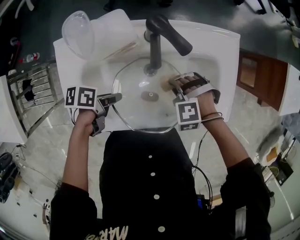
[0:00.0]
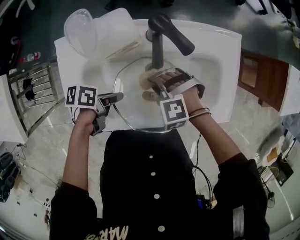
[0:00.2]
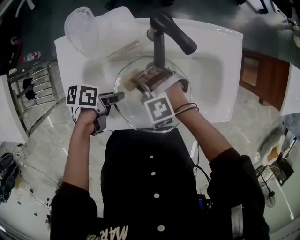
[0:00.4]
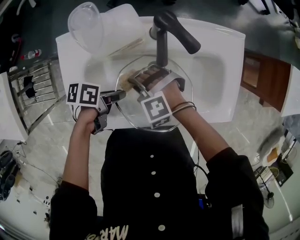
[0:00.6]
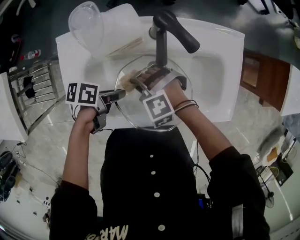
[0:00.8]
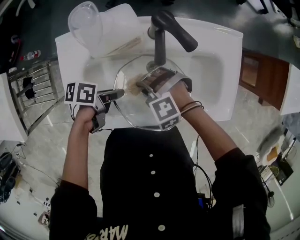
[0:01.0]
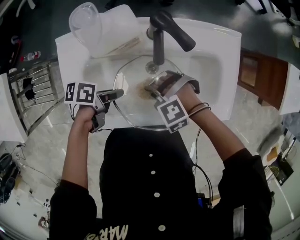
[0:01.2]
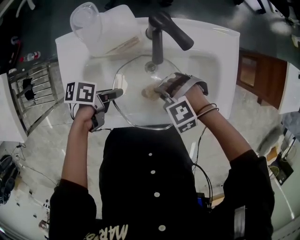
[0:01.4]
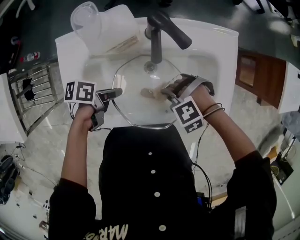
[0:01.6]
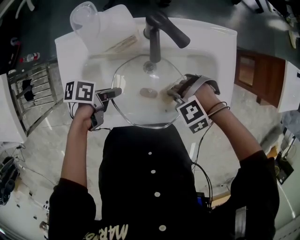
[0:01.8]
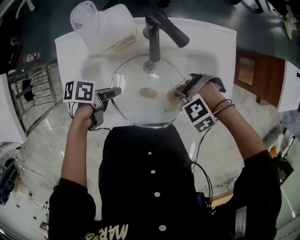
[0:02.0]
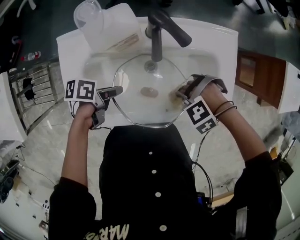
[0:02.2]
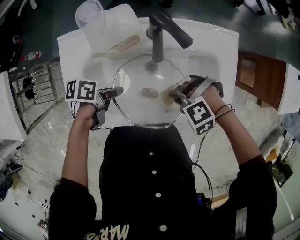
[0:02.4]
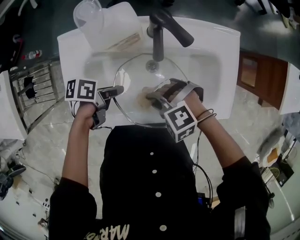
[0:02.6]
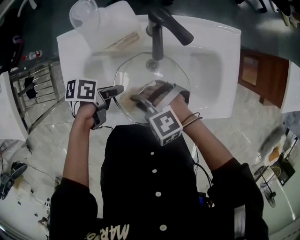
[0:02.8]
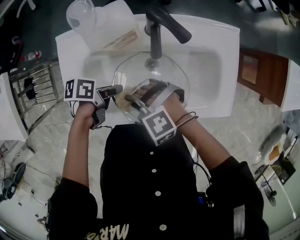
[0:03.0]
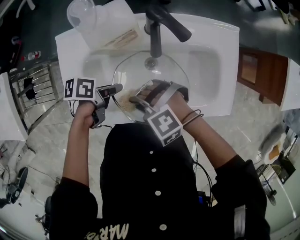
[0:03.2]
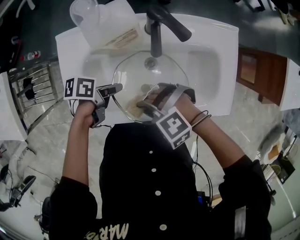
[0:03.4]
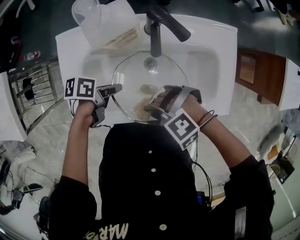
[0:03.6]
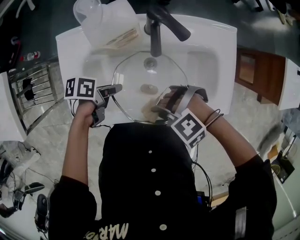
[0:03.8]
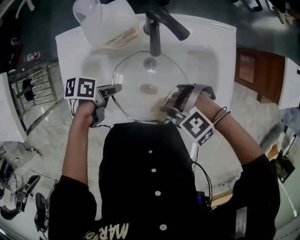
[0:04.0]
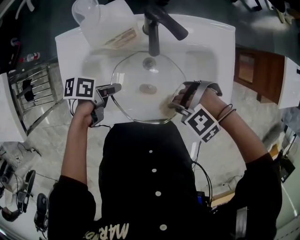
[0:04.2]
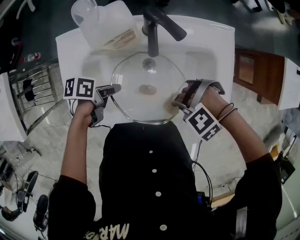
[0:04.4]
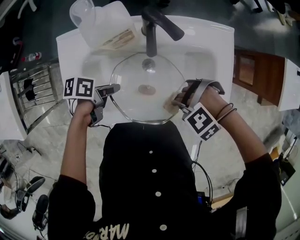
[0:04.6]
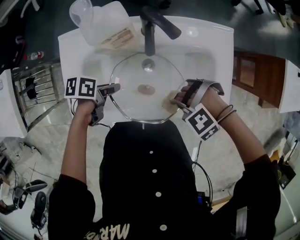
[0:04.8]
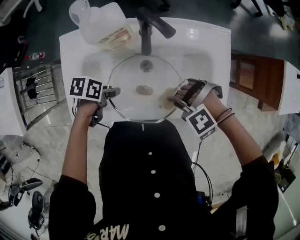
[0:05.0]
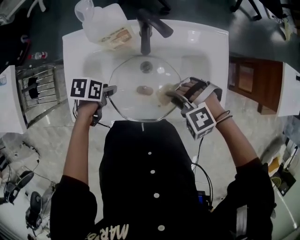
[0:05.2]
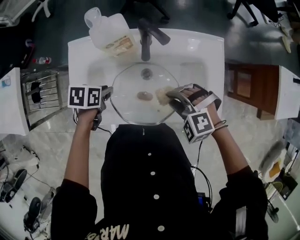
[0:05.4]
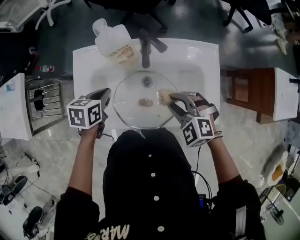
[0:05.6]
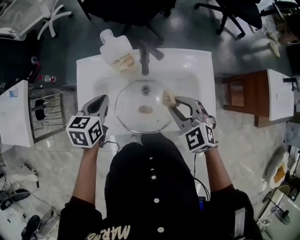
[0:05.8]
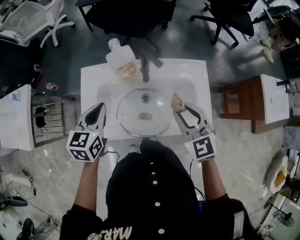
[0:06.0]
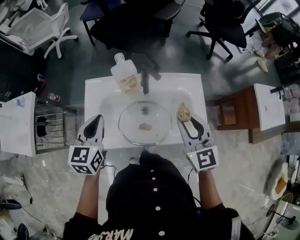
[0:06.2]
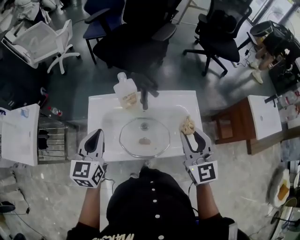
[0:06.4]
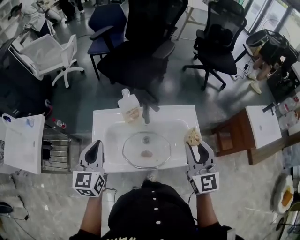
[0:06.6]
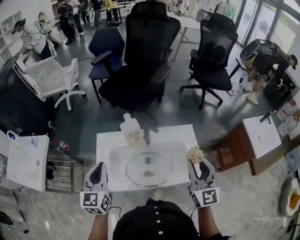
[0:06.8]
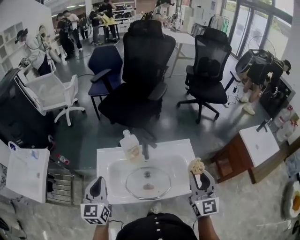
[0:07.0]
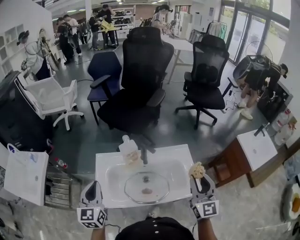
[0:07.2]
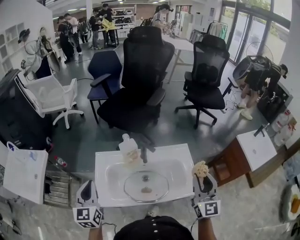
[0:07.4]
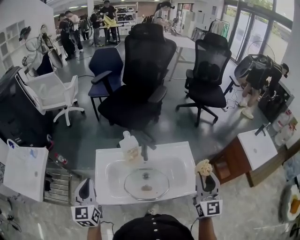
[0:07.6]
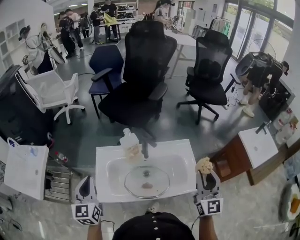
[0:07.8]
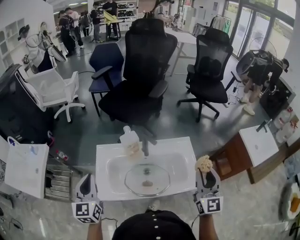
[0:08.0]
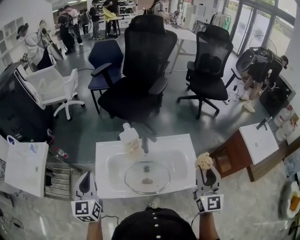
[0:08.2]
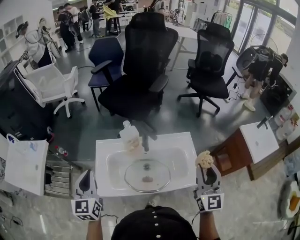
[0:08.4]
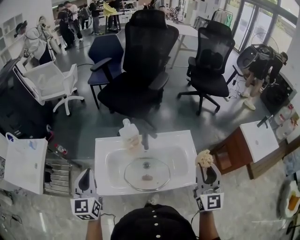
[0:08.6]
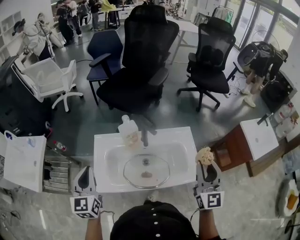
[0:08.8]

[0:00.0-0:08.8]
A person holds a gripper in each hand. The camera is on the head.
0:01.4 to 0:03.0: The right gripper moves some 10 cm.
0:03.0 to 0:04.4: The right gripper ends up approximately 20 cm from where it was, and rotates some 30 degrees.
0:04.4 to 0:05.8: Both grippers move upward, roughly 15 cm. The right gripper points its fingers about 30 degrees further upward, while the left gripper turns by approximately 60 degrees, and opens and closes again.
0:05.8 to 0:07.4: The left gripper shifts roughly 25 cm upward, to the left and backward, and tilts its fingers some 30 degrees upward. The right gripper moves upward and to the right, some 25 cm, and angles its fingers upward, by some 40 degrees.
0:07.4 to 0:08.8: Both grippers stay about where they are.

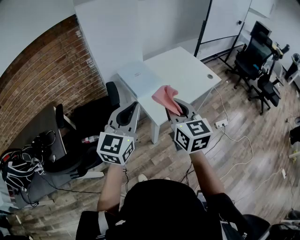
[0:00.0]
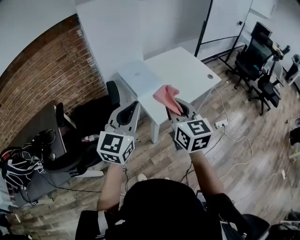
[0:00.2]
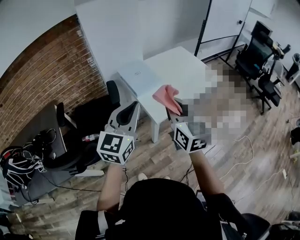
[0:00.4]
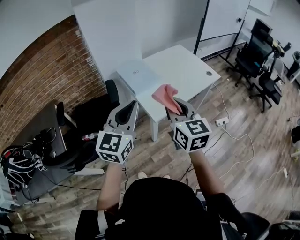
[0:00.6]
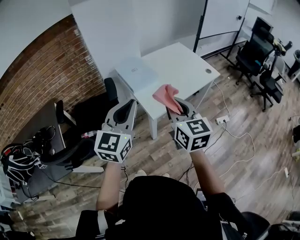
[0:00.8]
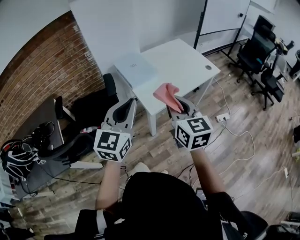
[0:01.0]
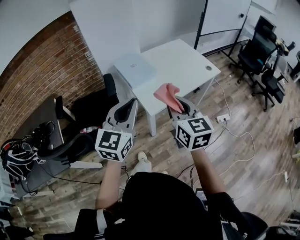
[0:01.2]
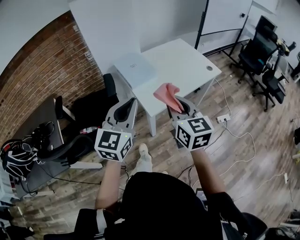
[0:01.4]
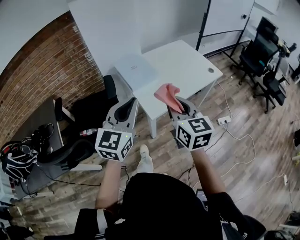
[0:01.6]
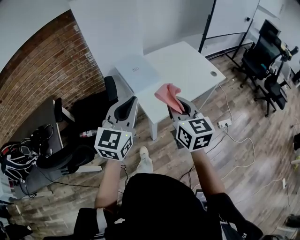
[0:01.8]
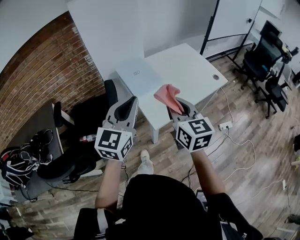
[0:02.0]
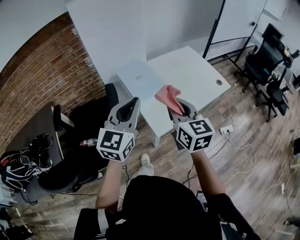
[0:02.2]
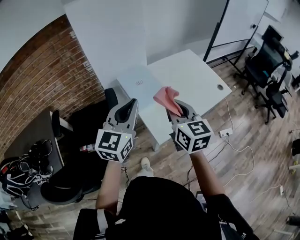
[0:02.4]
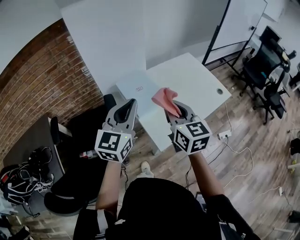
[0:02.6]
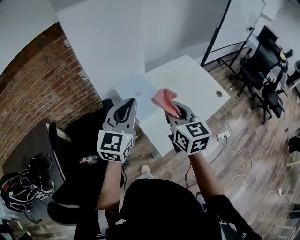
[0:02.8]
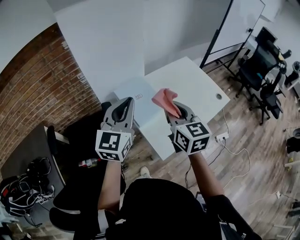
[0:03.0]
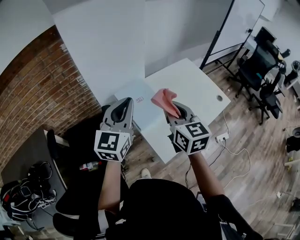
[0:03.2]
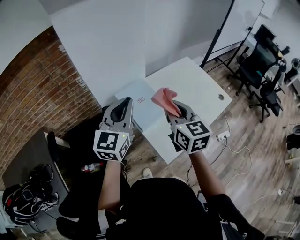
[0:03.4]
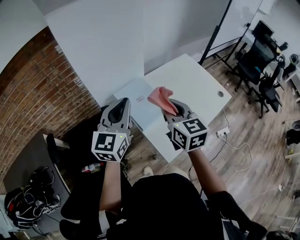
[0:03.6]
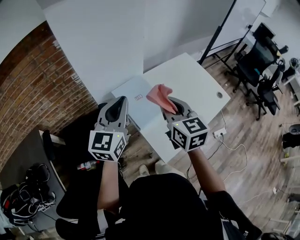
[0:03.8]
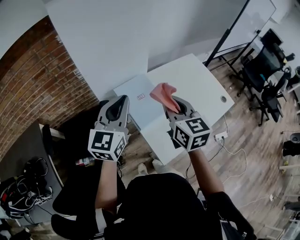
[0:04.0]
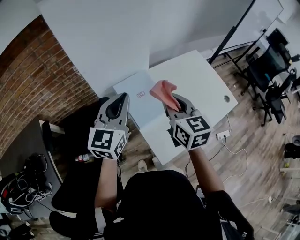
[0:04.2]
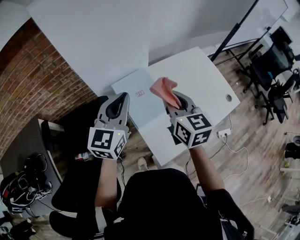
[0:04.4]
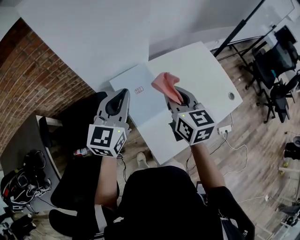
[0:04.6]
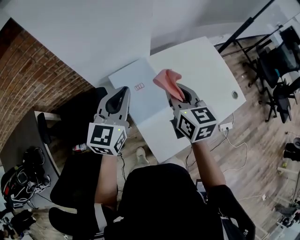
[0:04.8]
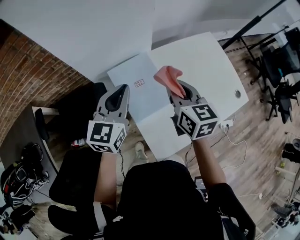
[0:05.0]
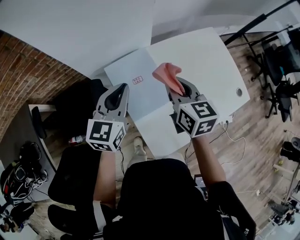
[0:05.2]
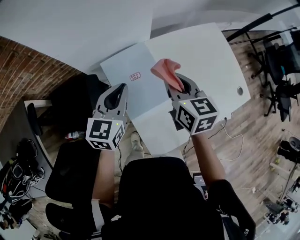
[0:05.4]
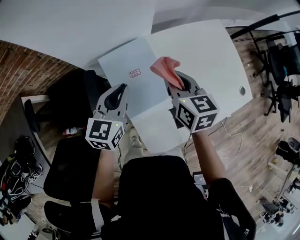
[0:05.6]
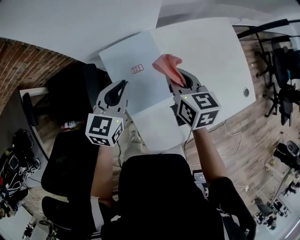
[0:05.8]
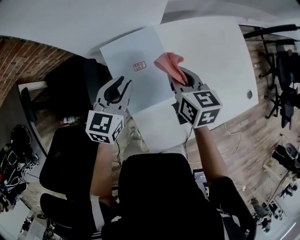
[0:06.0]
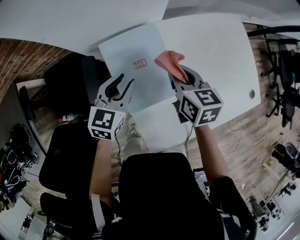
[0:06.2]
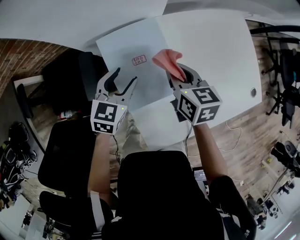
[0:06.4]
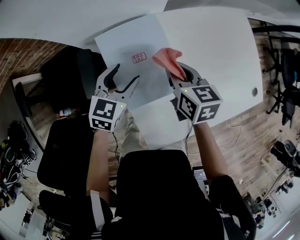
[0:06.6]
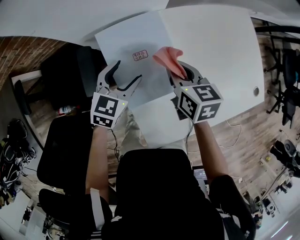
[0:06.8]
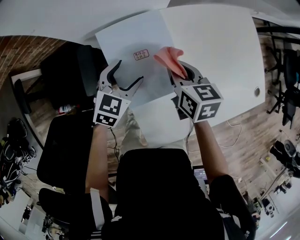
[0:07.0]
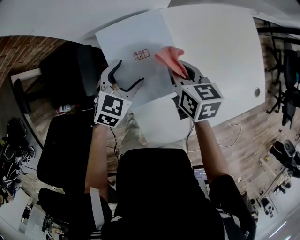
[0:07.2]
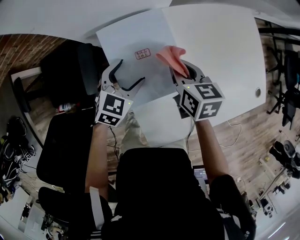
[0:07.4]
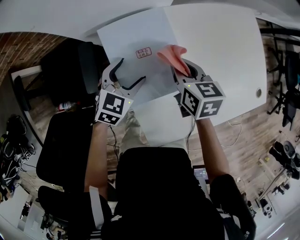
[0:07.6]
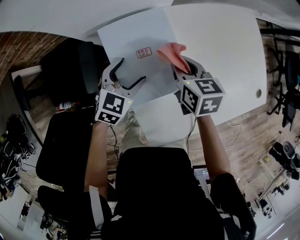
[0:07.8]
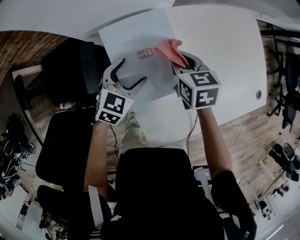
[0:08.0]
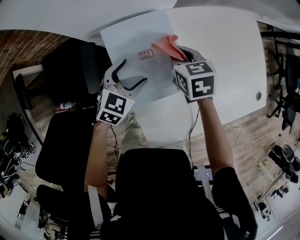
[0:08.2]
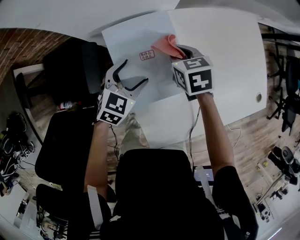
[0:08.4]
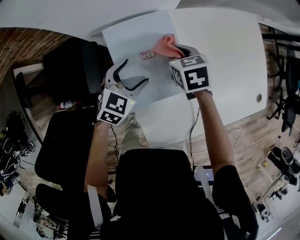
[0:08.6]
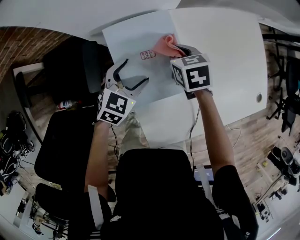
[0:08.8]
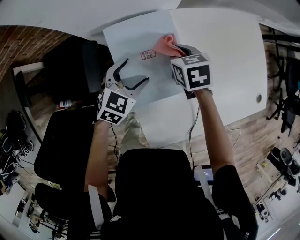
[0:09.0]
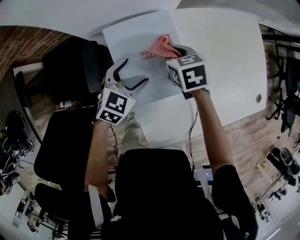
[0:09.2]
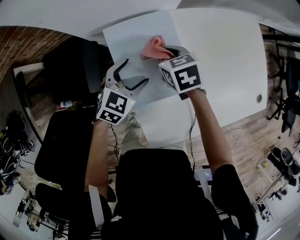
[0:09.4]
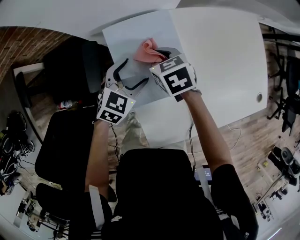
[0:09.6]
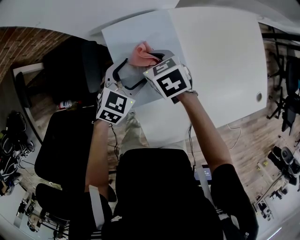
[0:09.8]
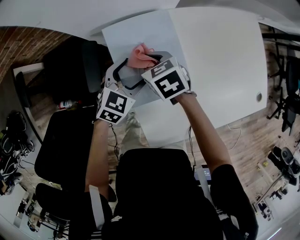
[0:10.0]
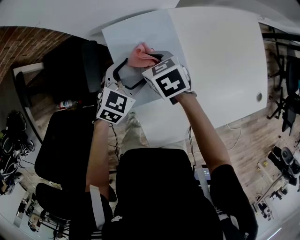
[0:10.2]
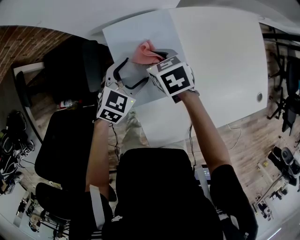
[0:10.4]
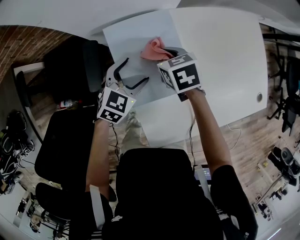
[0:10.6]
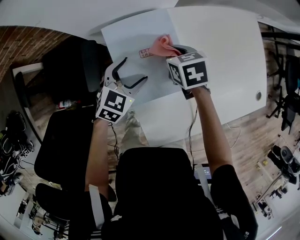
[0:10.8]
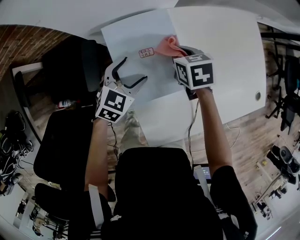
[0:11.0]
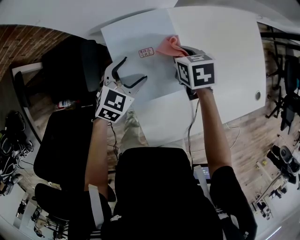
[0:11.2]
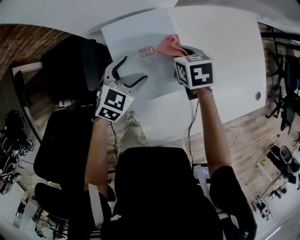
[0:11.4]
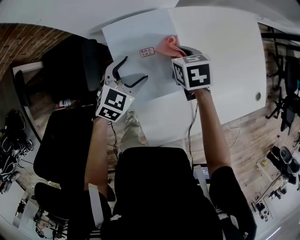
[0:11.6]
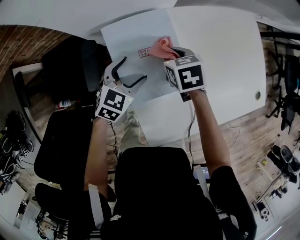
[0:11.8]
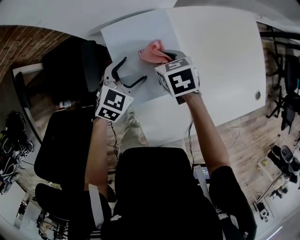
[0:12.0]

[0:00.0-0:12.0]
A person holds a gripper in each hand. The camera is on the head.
0:00.0 to 0:01.6: Both grippers travel together to the right, approximately 5 cm.
0:01.6 to 0:03.0: Both grippers move forward, some 30 cm.
0:03.0 to 0:04.4: The left gripper travels forward and downward by some 10 cm; the right gripper travels forward by some 15 cm.
0:04.4 to 0:06.0: The left gripper is displaced downward by approximately 25 cm, and swivels some 20 degrees. The right gripper goes about 25 cm downward and forward, and rotates roughly 20 degrees.
0:06.0 to 0:07.6: Both grippers move downward, approximately 10 cm. The left gripper turns by some 20 degrees, and opens its fingers.
0:07.6 to 0:09.0: The right gripper ends up roughly 5 cm from where it was.
0:09.0 to 0:10.4: The right gripper heads to the left, covering approximately 10 cm.

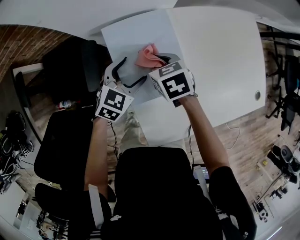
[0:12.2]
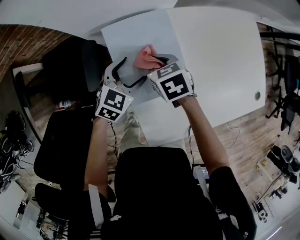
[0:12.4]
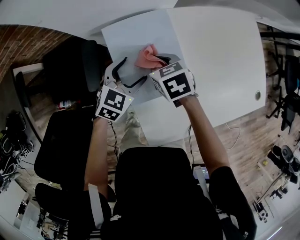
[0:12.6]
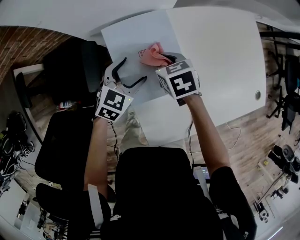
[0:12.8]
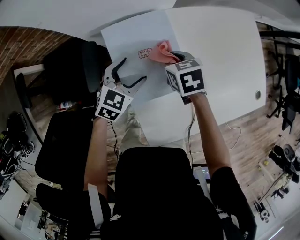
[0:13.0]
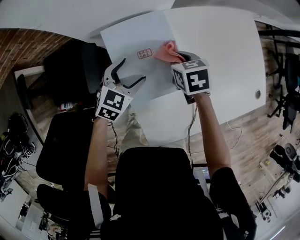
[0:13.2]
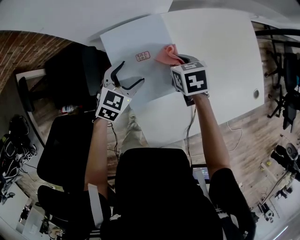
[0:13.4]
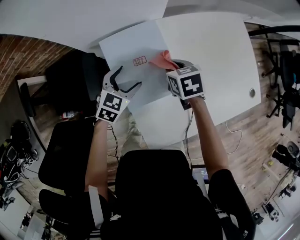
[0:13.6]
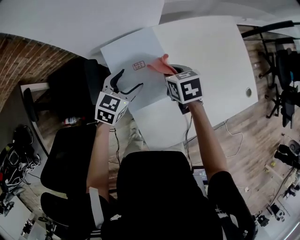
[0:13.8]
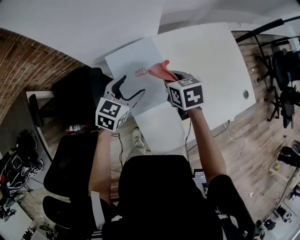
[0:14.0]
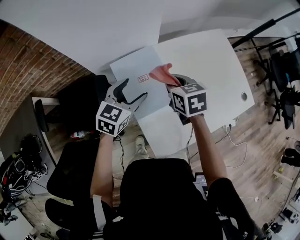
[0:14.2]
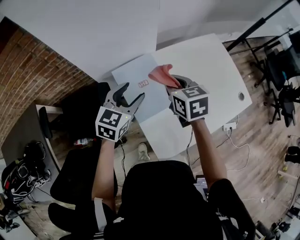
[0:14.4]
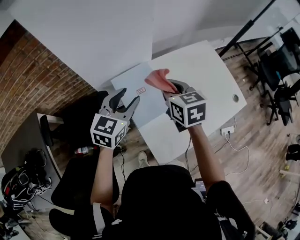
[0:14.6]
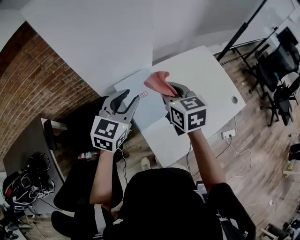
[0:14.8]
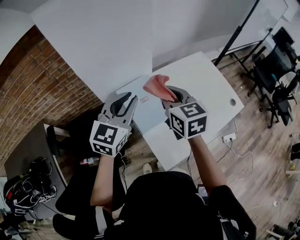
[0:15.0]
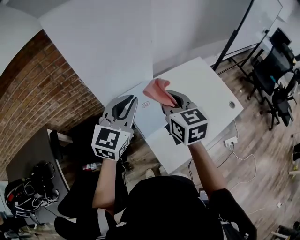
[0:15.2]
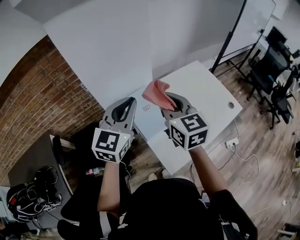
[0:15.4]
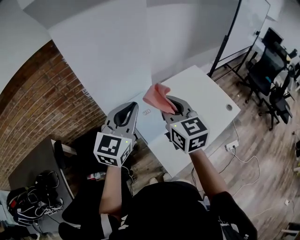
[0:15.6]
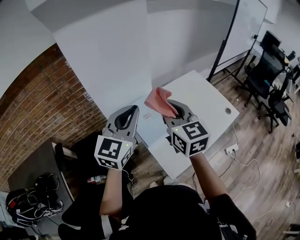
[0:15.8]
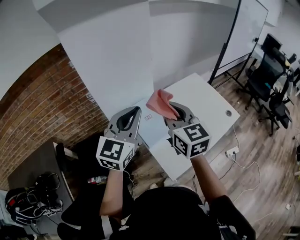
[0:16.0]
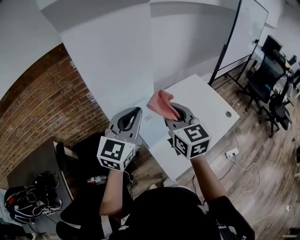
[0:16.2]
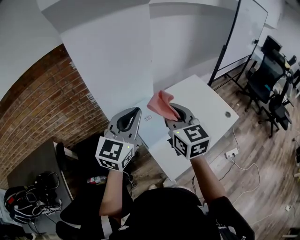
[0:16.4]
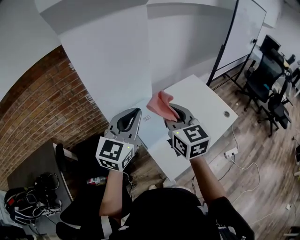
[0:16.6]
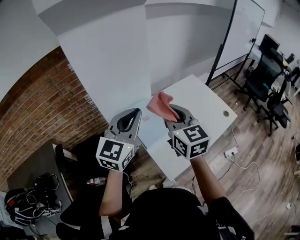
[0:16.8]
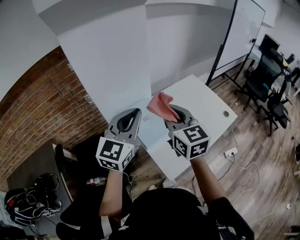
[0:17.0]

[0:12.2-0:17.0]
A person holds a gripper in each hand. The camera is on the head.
0:12.2 to 0:13.8: The right gripper shifts about 10 cm to the right.
0:13.8 to 0:15.4: Both grippers travel together upward, approximately 35 cm. The right gripper angles its fingers upward, by about 40 degrees, while the left gripper turns by some 30 degrees, and closes up.
0:15.4 to 0:17.0: The right gripper moves roughly 5 cm; the left gripper heads backward, covering approximately 5 cm.
